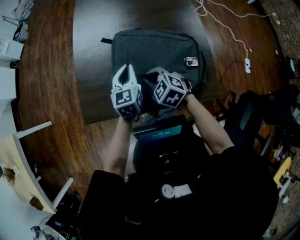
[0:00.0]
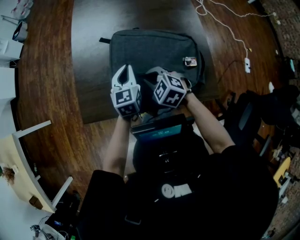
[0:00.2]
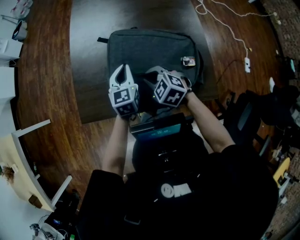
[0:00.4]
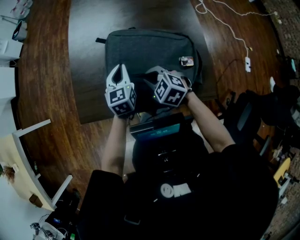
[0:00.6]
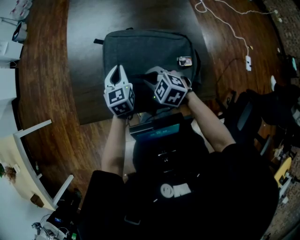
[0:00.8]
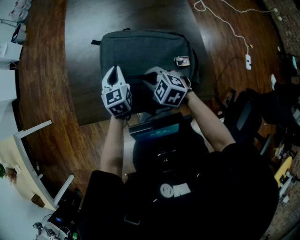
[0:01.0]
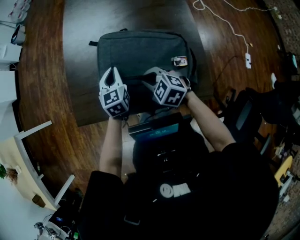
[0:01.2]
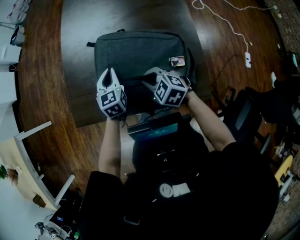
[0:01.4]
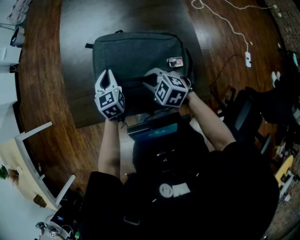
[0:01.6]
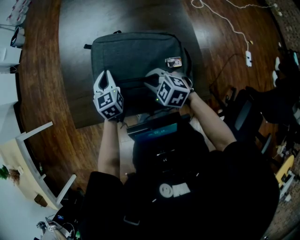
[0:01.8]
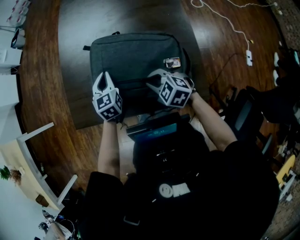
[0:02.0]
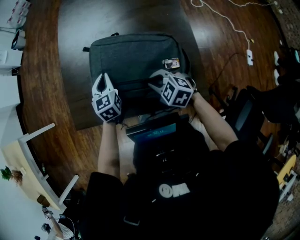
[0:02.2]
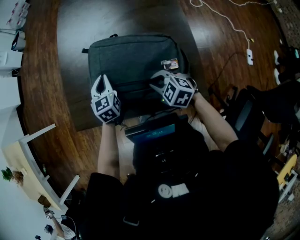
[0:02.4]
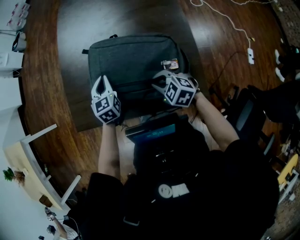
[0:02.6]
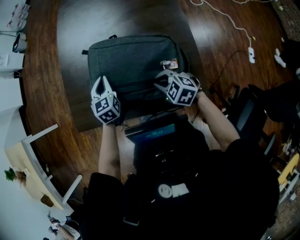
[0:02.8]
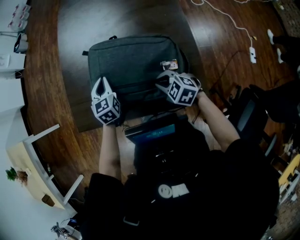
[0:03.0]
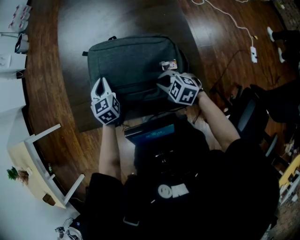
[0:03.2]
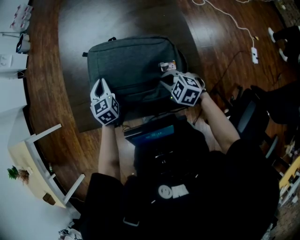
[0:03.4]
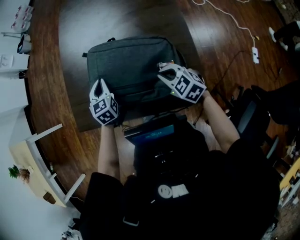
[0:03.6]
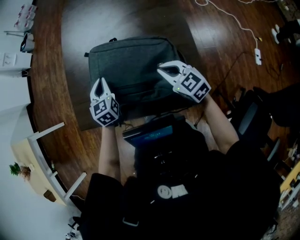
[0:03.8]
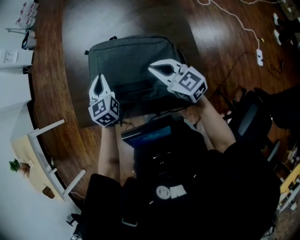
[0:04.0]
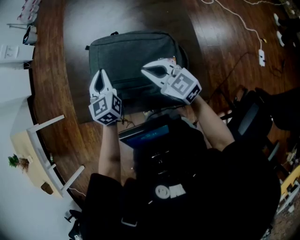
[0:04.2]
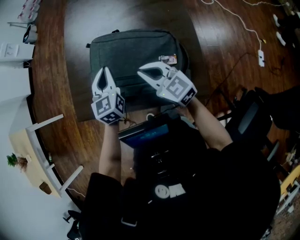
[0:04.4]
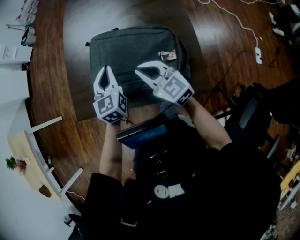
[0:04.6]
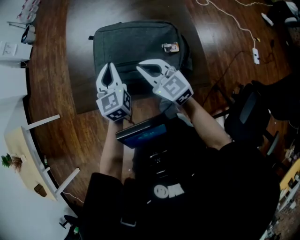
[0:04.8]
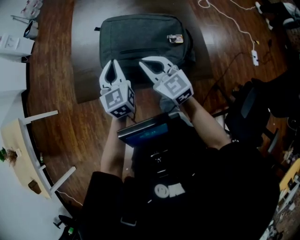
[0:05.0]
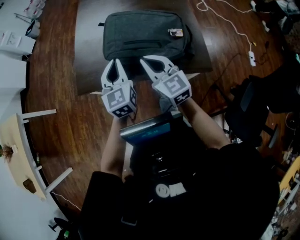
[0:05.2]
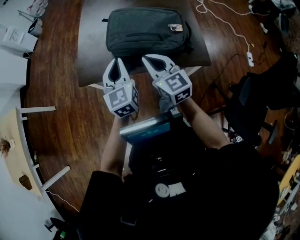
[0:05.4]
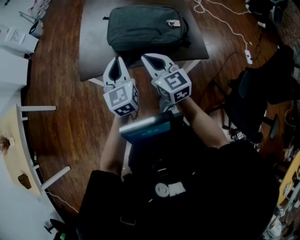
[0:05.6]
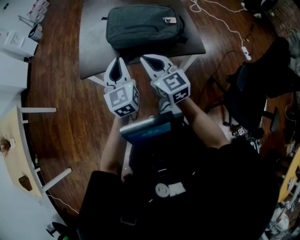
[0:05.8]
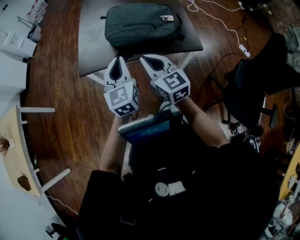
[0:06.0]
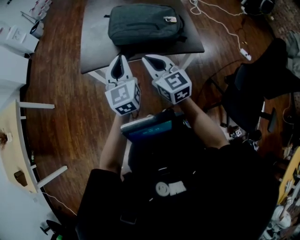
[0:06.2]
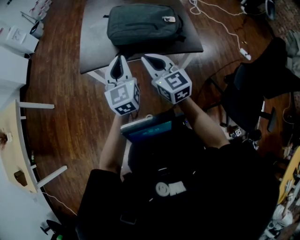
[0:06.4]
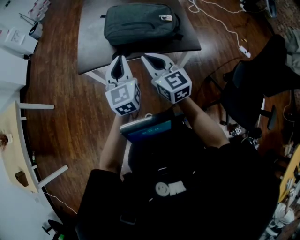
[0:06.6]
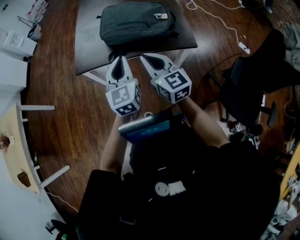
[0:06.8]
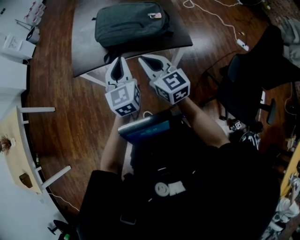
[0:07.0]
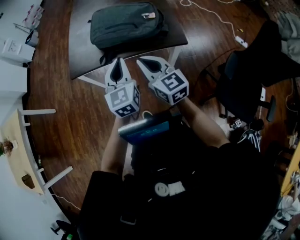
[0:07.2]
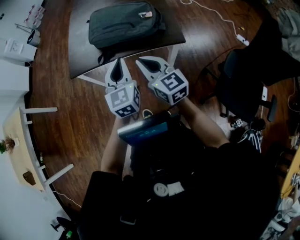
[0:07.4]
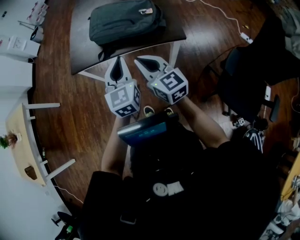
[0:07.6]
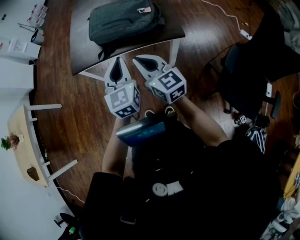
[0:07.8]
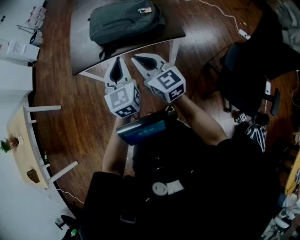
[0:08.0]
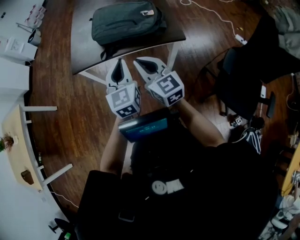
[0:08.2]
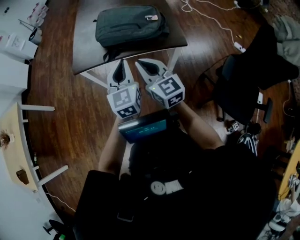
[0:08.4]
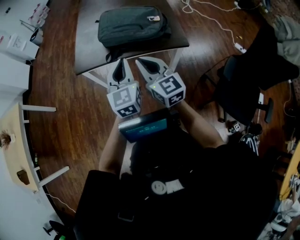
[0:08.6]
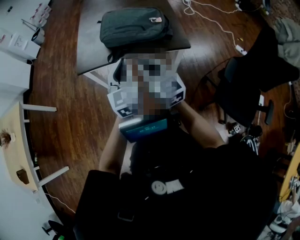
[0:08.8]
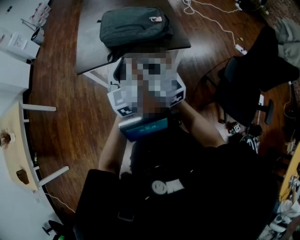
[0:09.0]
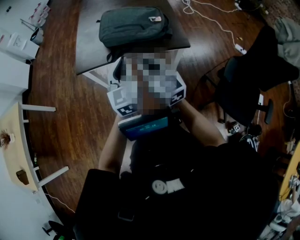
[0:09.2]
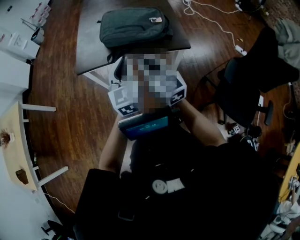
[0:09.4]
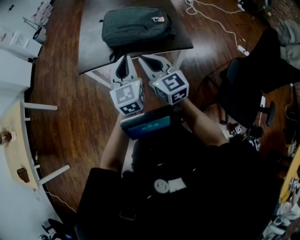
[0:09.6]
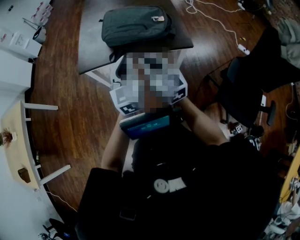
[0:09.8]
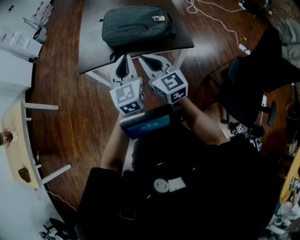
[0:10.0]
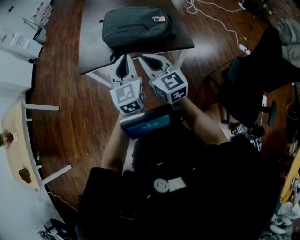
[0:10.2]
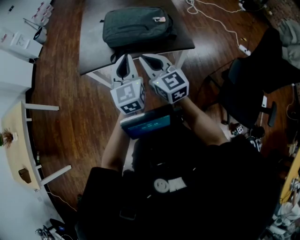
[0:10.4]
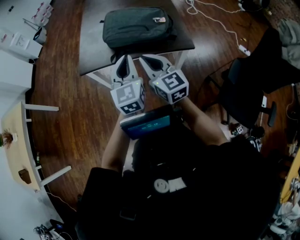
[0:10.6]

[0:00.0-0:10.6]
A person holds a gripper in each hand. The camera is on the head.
0:00.0 to 0:01.6: The right gripper heads to the right, covering approximately 5 cm.
0:01.6 to 0:03.0: The right gripper is displaced to the right by some 5 cm.
0:03.0 to 0:04.6: The left gripper shifts roughly 10 cm upward and backward. Meanwhile the right gripper is displaced upward by about 15 cm, and points its fingers roughly 40 degrees further upward.
0:04.6 to 0:06.0: Both grippers move backward and to the left, roughly 30 cm.
0:06.0 to 0:07.6: The two grippers go some 15 cm to the right and backward.
0:07.6 to 0:09.0: Both grippers travel together to the left, about 5 cm.
0:09.0 to 0:10.6: There are only small adjustments of the grippers.

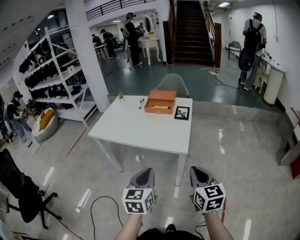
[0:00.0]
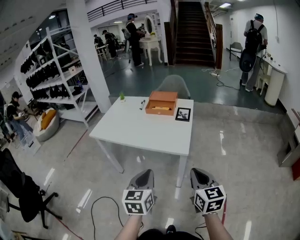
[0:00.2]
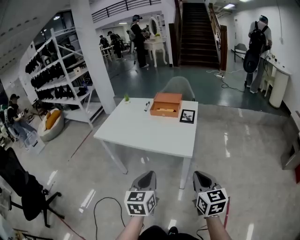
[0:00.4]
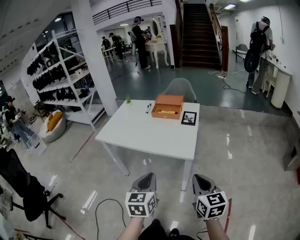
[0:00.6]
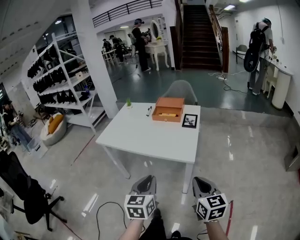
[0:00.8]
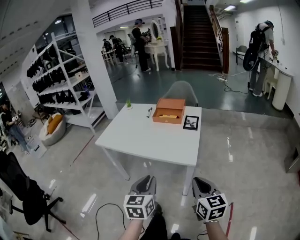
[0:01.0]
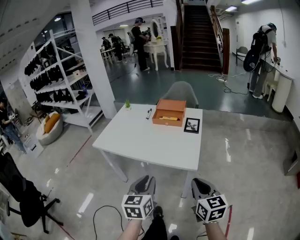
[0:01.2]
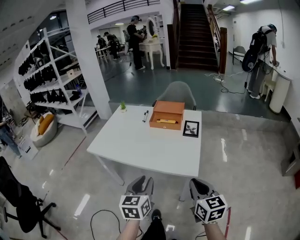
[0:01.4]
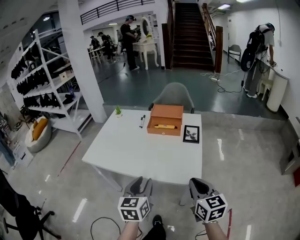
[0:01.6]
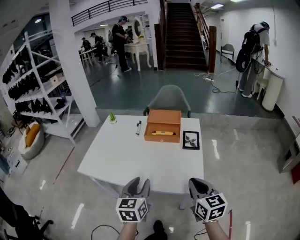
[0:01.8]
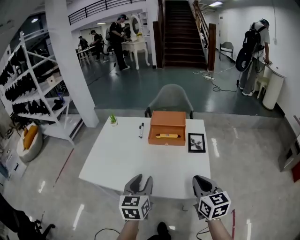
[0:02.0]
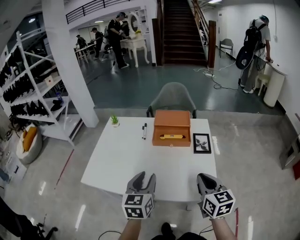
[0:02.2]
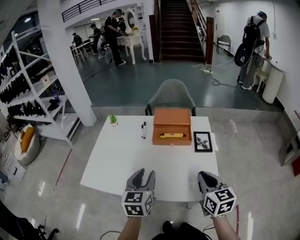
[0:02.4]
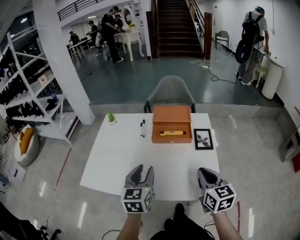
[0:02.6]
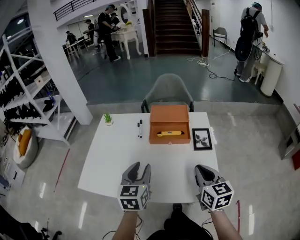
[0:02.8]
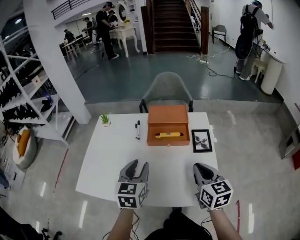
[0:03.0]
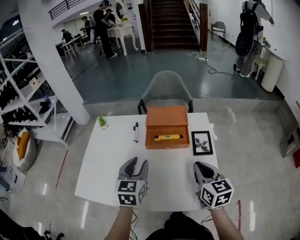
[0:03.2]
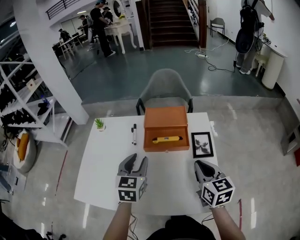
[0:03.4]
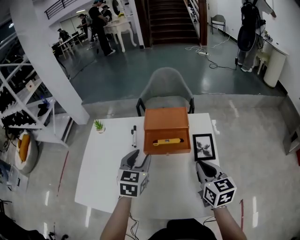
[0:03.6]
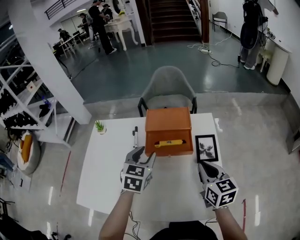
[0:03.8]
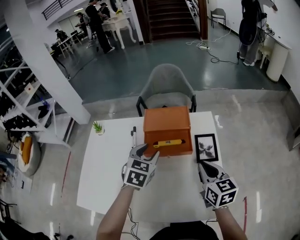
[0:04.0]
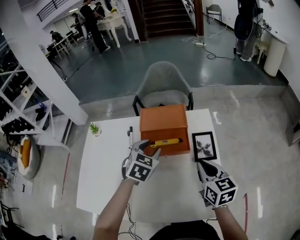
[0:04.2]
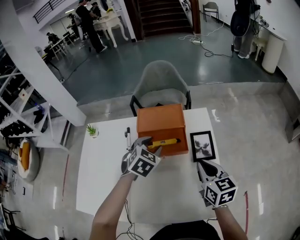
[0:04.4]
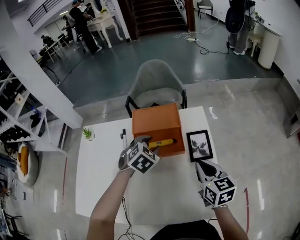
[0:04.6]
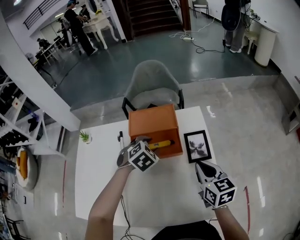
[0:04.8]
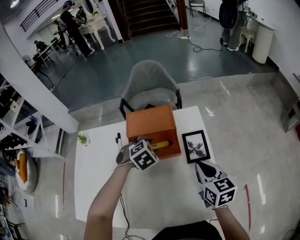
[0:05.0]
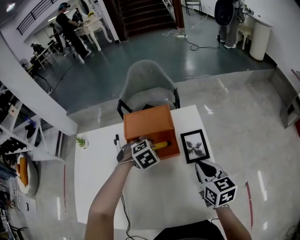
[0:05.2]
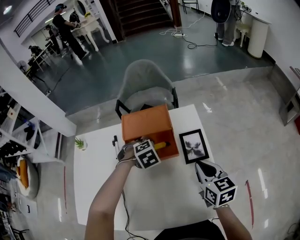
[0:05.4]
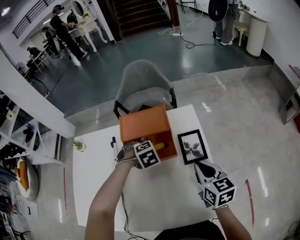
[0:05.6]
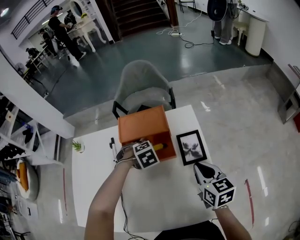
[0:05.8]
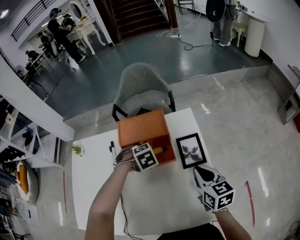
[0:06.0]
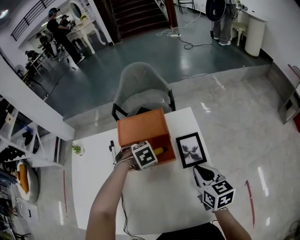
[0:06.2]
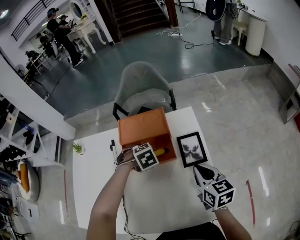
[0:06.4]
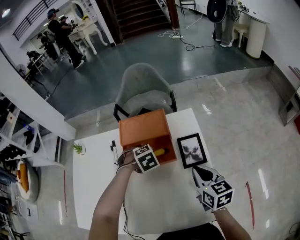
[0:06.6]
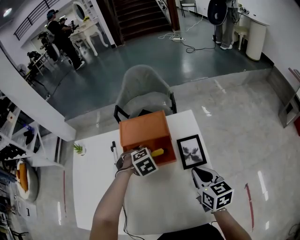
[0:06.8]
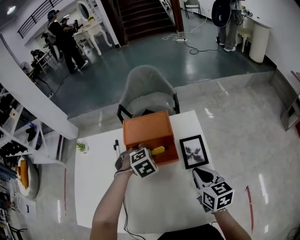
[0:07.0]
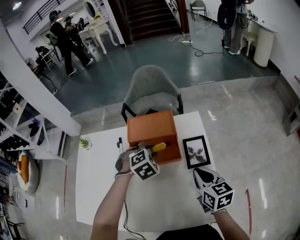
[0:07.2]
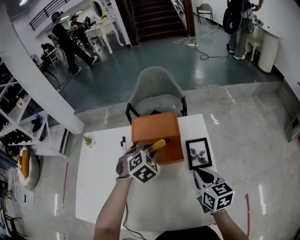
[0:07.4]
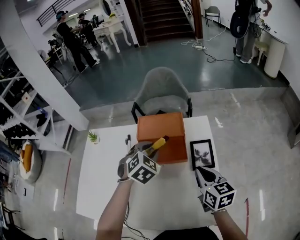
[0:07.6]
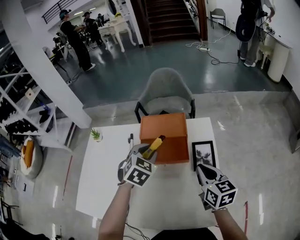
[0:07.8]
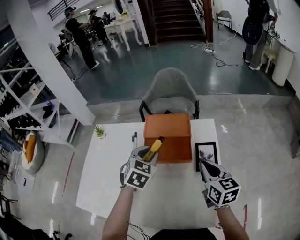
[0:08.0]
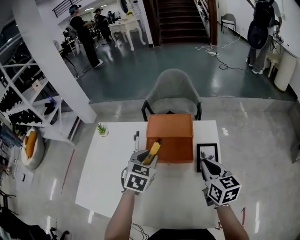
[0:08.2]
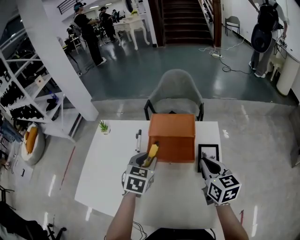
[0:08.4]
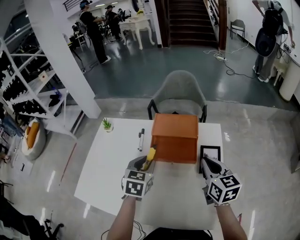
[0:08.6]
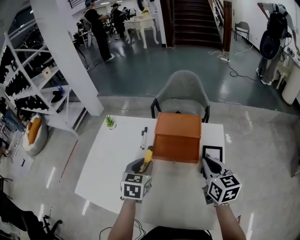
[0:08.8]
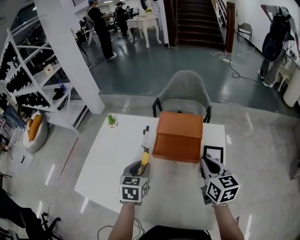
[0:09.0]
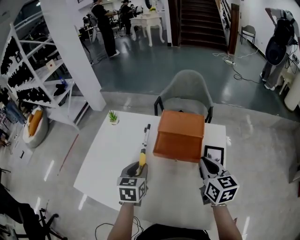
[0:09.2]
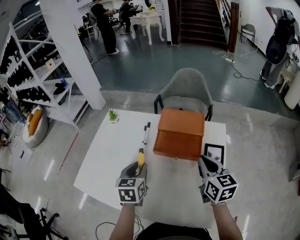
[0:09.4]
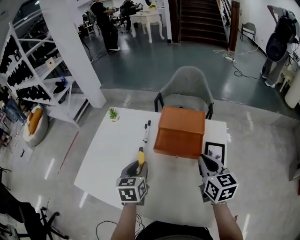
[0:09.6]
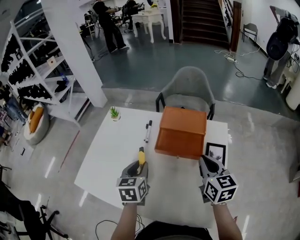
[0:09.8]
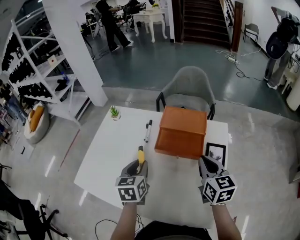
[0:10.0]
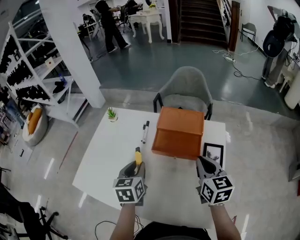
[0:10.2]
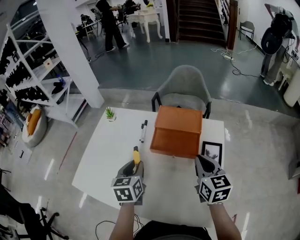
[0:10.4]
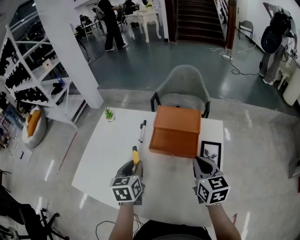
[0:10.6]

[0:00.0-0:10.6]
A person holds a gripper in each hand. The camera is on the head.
0:00.0 to 0:01.6: Both grippers travel together forward, some 20 cm. The left gripper opens.
0:01.6 to 0:03.0: Both grippers move forward, approximately 25 cm.
0:03.0 to 0:04.6: The left gripper travels forward, to the right and downward by approximately 25 cm, and angles its fingers downward, by approximately 30 degrees, while the right gripper shifts some 15 cm forward, downward and to the right.
0:04.6 to 0:06.0: The left gripper goes some 10 cm downward, and swivels roughly 40 degrees.
0:06.0 to 0:07.6: The left gripper shifts approximately 15 cm upward, and tilts its fingers approximately 30 degrees upward.
0:07.6 to 0:09.0: The right gripper goes some 5 cm upward, while the left gripper travels to the left and backward by approximately 15 cm, and rotates around the line of its fingers by approximately 50 degrees, counterclockwise from behind.
0:09.0 to 0:10.6: There are only small adjustments of the grippers.

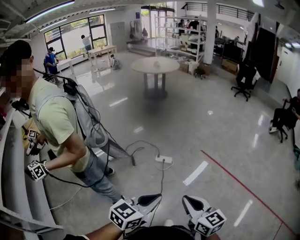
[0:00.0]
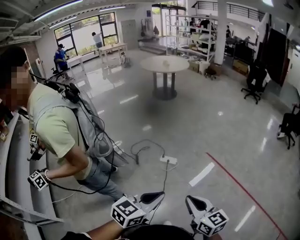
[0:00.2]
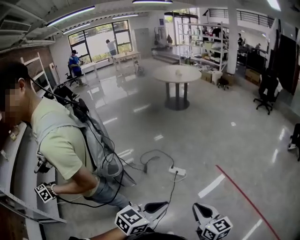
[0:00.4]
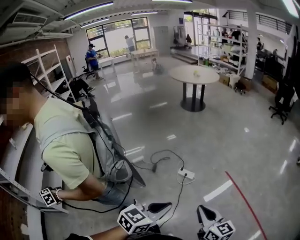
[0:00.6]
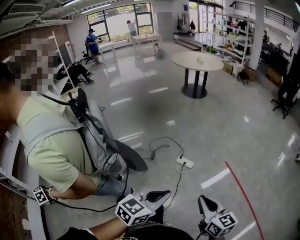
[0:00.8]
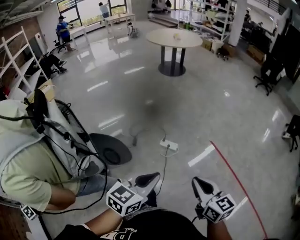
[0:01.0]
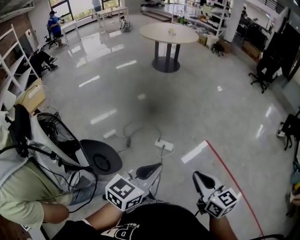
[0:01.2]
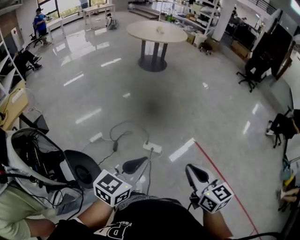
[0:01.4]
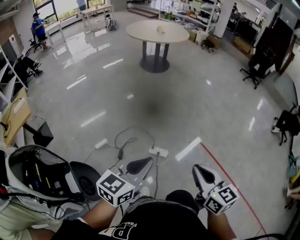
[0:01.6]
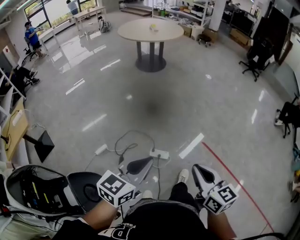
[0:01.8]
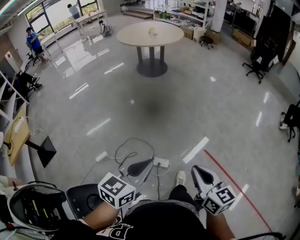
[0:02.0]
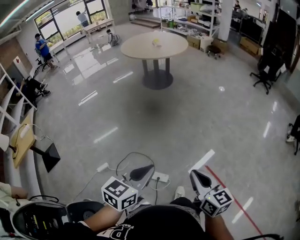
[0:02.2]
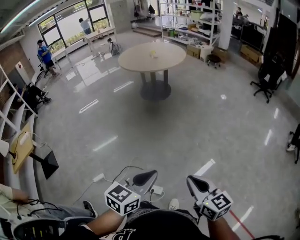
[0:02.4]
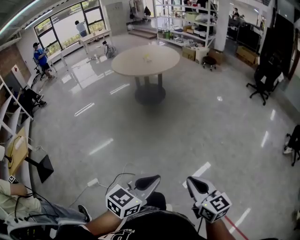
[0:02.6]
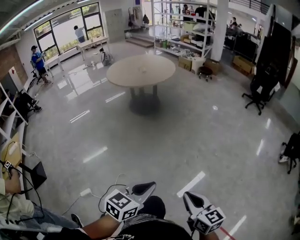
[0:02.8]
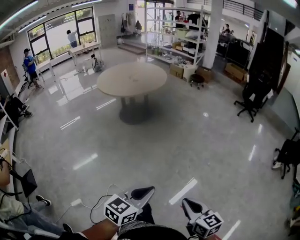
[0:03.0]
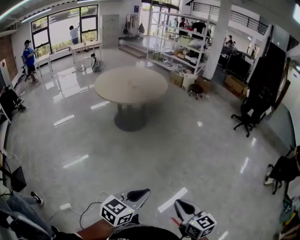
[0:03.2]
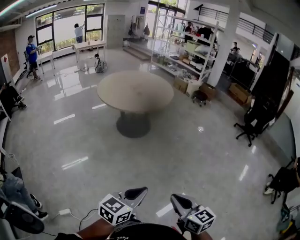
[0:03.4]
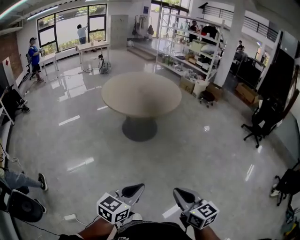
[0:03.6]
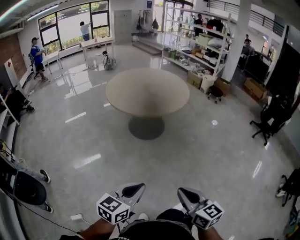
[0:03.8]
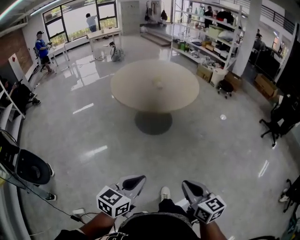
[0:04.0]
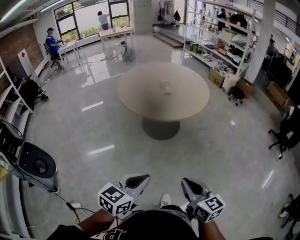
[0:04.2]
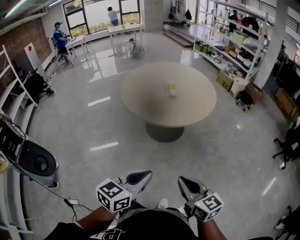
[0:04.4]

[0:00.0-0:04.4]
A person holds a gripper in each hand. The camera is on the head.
0:00.0 to 0:01.4: Both grippers travel together forward, some 40 cm.
0:01.4 to 0:03.0: Both grippers are carried forward and to the right, some 70 cm.
0:03.0 to 0:04.4: Both grippers are carried forward, approximately 70 cm. The left gripper turns by about 20 degrees; the right gripper rotates some 20 degrees.
